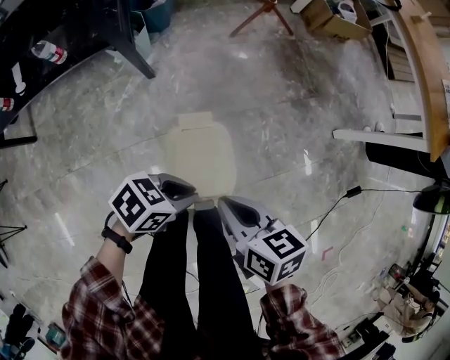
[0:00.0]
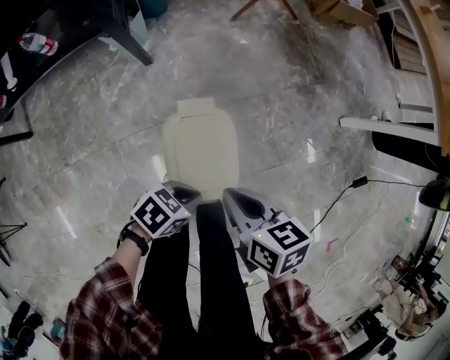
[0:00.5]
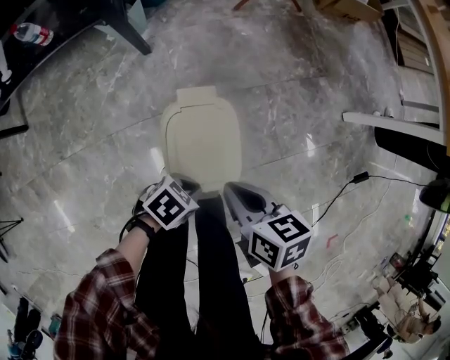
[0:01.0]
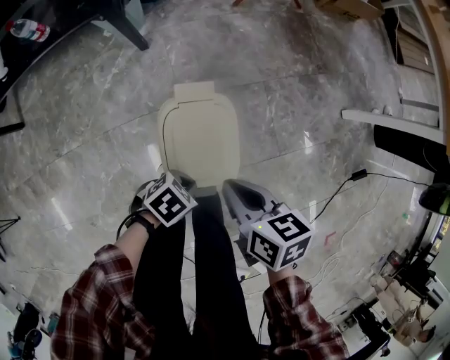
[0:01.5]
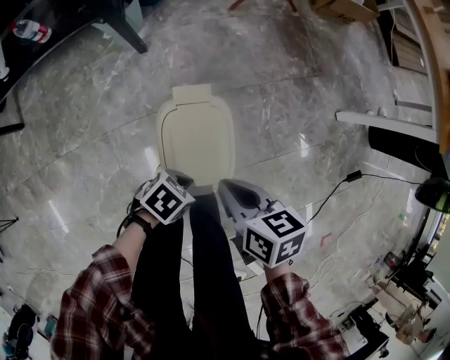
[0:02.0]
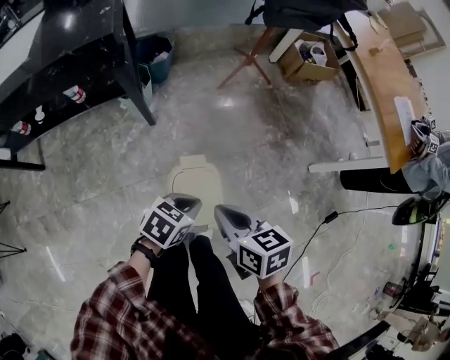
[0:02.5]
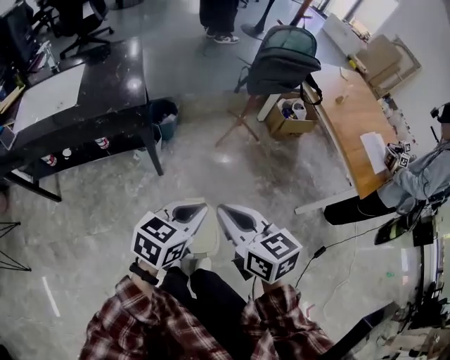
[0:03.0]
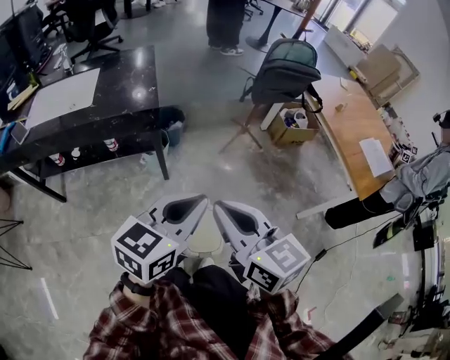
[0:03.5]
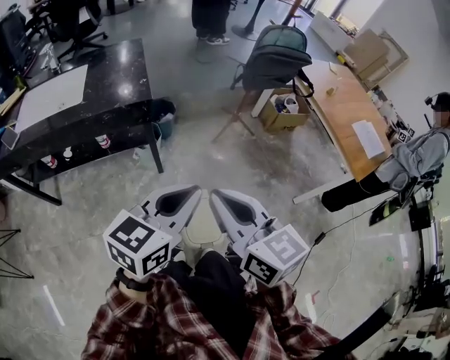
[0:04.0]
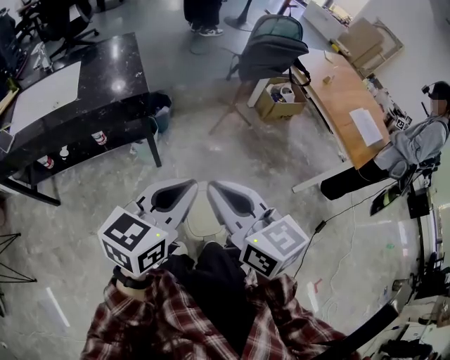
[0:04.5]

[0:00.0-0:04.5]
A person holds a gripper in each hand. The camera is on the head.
0:00.0 to 0:02.0: The right gripper goes about 5 cm downward, while the left gripper travels downward by some 15 cm.
0:02.0 to 0:04.5: The two grippers go some 60 cm upward. The right gripper tips its fingers upward by about 30 degrees. Meanwhile the left gripper tilts its fingers roughly 50 degrees upward.

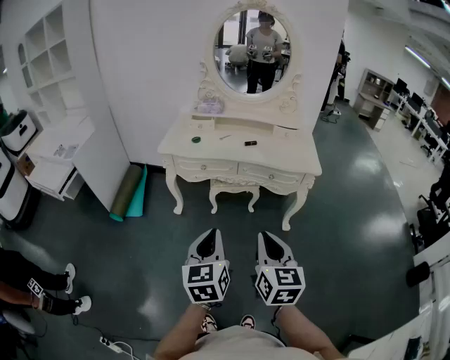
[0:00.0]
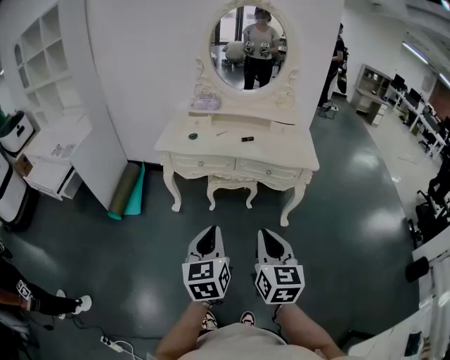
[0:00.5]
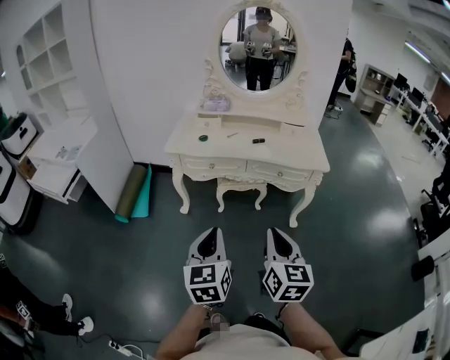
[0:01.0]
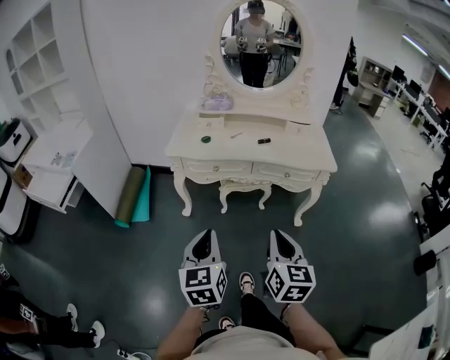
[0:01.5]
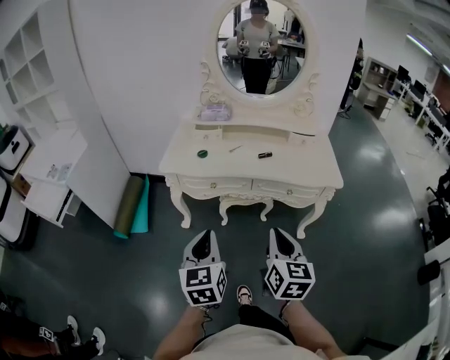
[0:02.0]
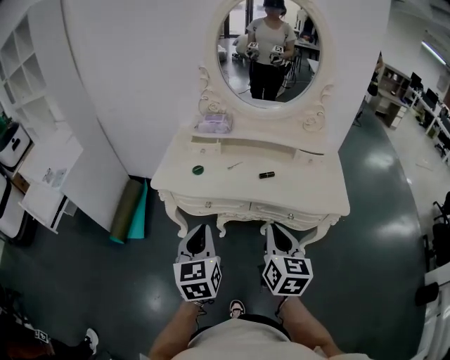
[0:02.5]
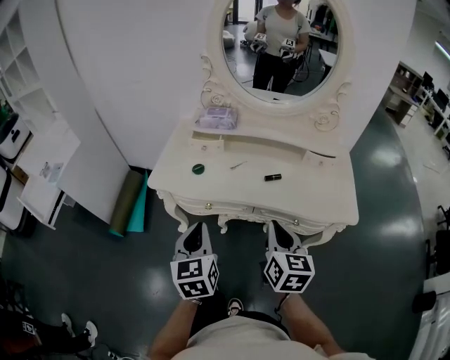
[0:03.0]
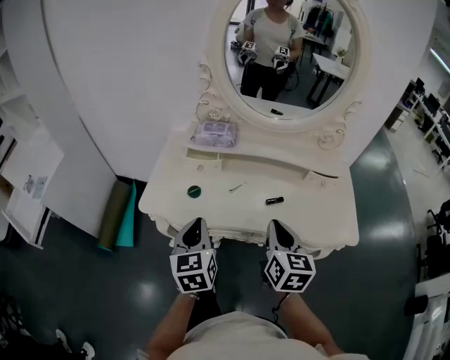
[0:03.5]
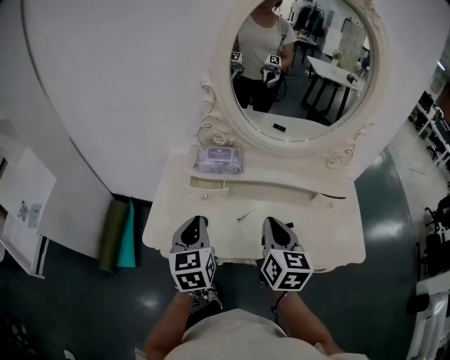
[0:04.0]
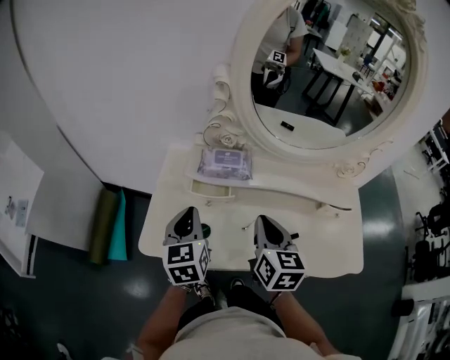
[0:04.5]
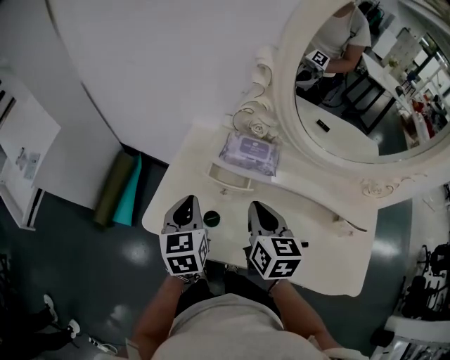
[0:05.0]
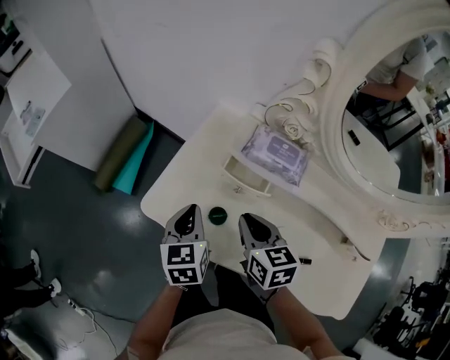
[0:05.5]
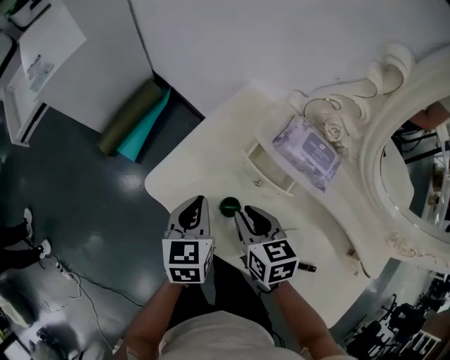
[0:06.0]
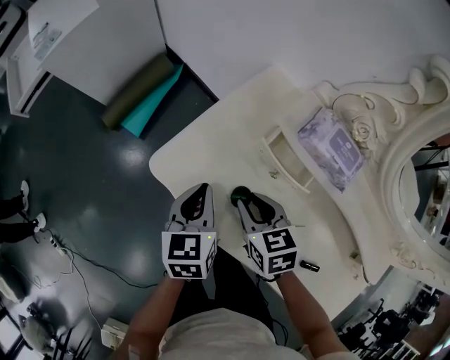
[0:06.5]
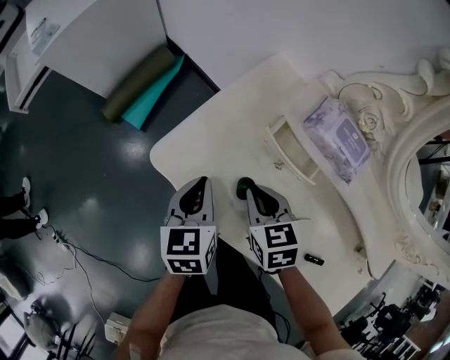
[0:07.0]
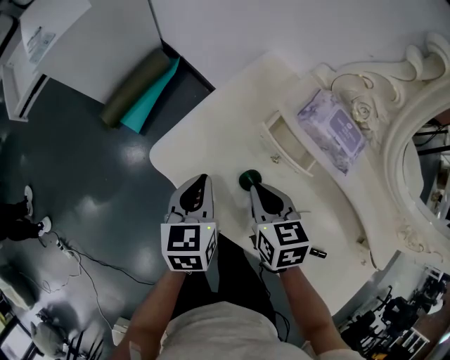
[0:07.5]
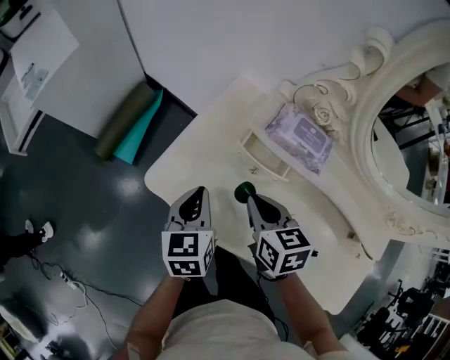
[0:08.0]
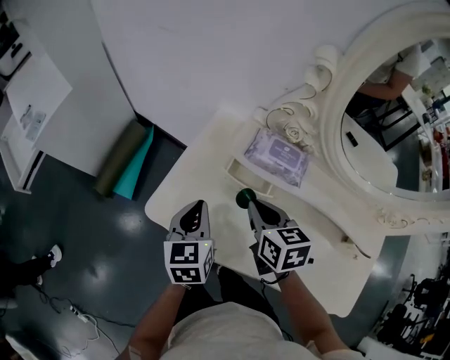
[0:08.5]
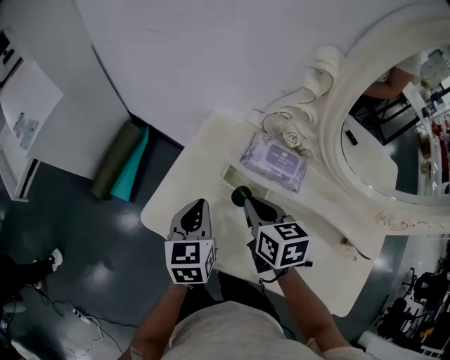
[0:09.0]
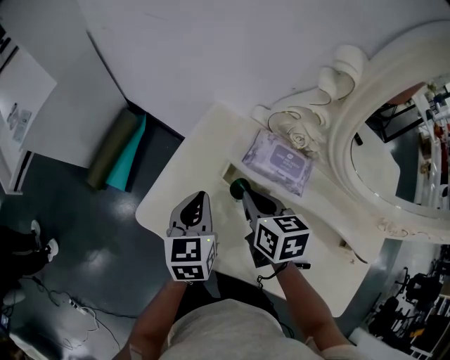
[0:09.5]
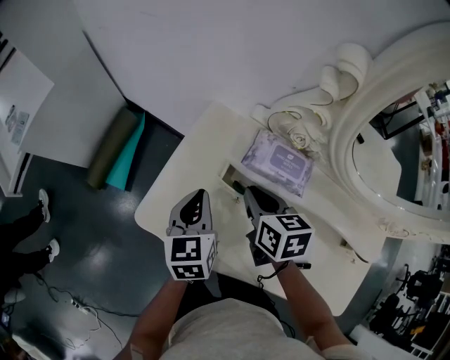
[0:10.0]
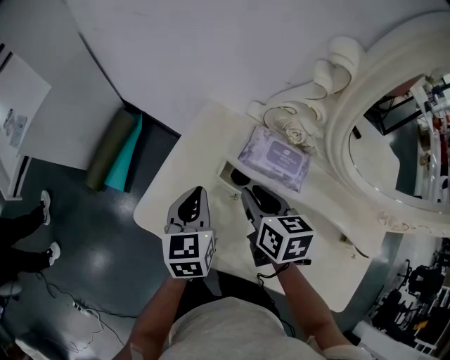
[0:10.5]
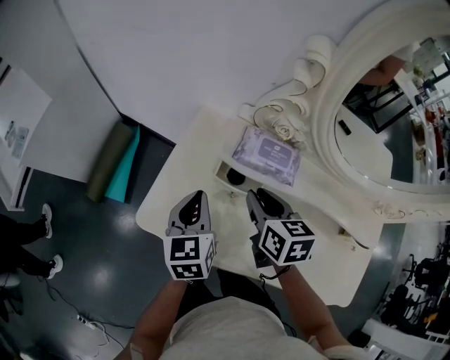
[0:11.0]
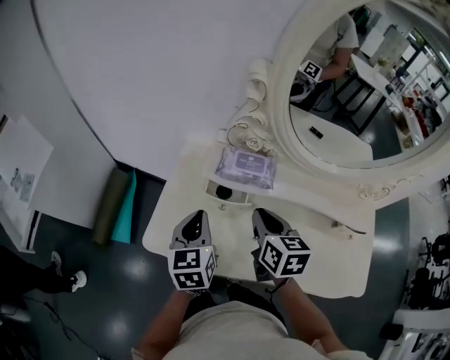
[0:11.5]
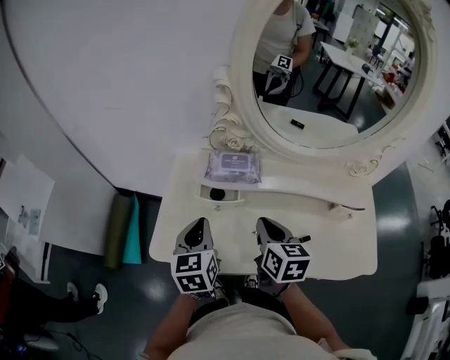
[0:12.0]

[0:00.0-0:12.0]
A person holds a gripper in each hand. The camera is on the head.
0:00.0 to 0:02.0: The left gripper heads forward and to the left, covering approximately 20 cm. Meanwhile the right gripper goes some 15 cm forward.
0:02.0 to 0:04.0: The two grippers travel together, forward, roughly 40 cm.
0:04.0 to 0:06.0: The right gripper moves about 30 cm, and swivels some 60 degrees. The left gripper moves downward, approximately 15 cm, and changes its angle by about 30 degrees.
0:06.0 to 0:08.0: There are only small adjustments of the grippers.
0:08.0 to 0:10.0: The grippers both shift forward by about 10 cm.
0:10.0 to 0:12.0: The right gripper shifts some 15 cm backward, to the right and upward, rotates roughly 30 degrees, and opens, then closes once more, while the left gripper heads upward and backward, covering about 10 cm.

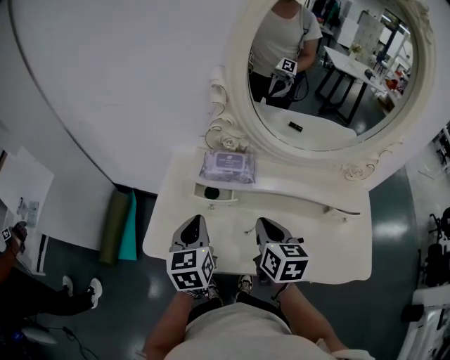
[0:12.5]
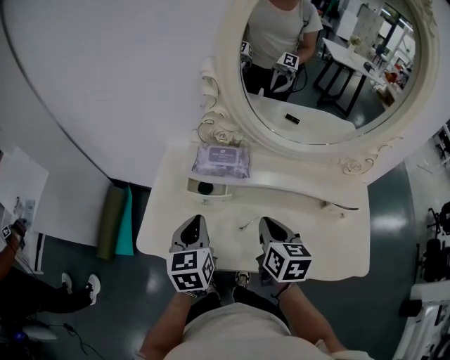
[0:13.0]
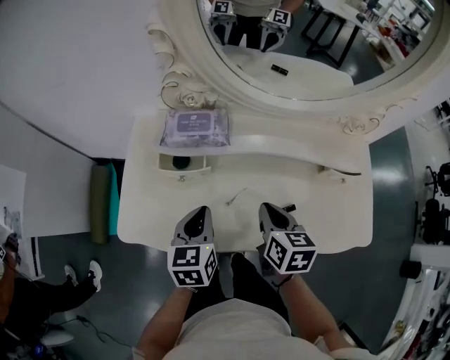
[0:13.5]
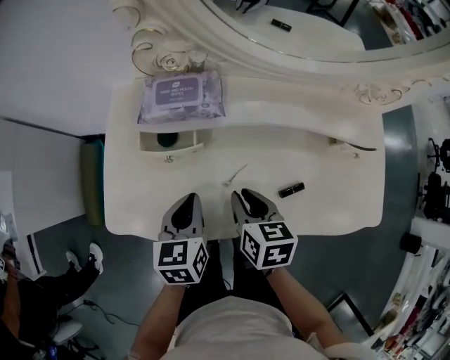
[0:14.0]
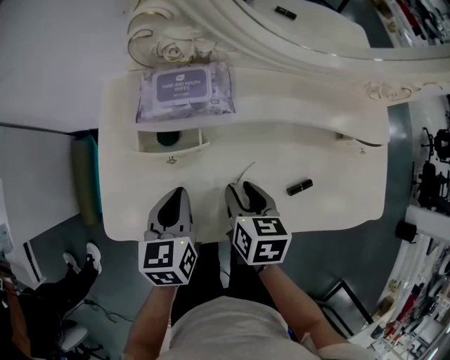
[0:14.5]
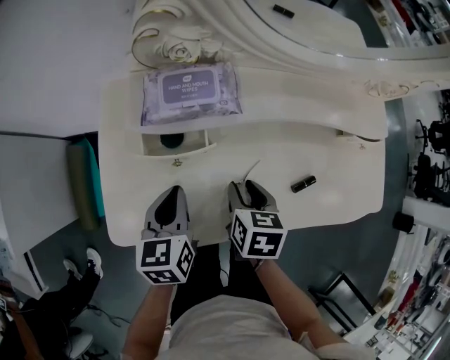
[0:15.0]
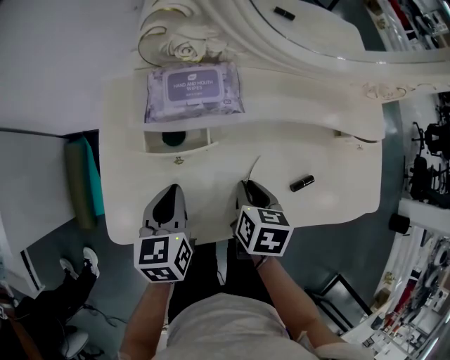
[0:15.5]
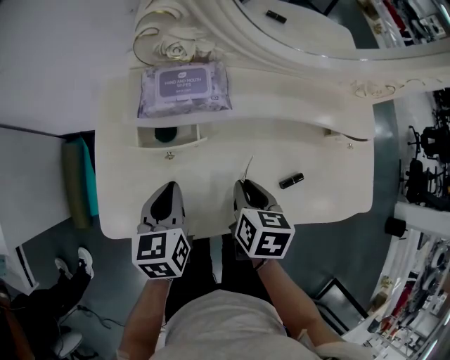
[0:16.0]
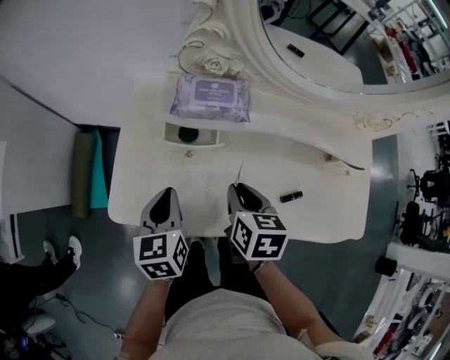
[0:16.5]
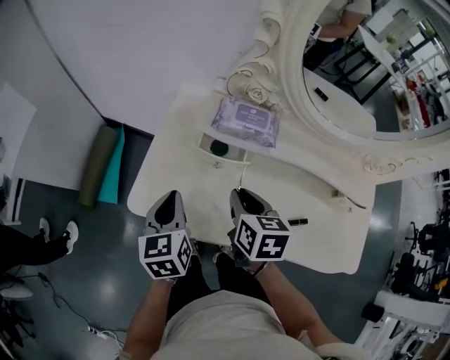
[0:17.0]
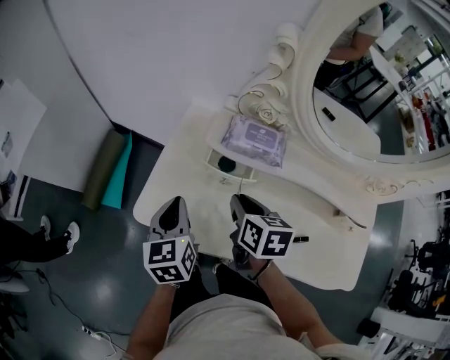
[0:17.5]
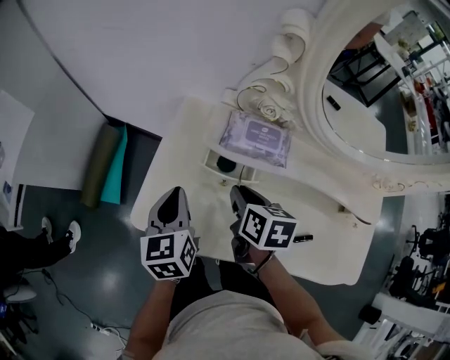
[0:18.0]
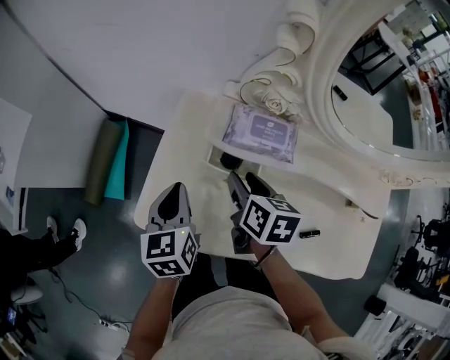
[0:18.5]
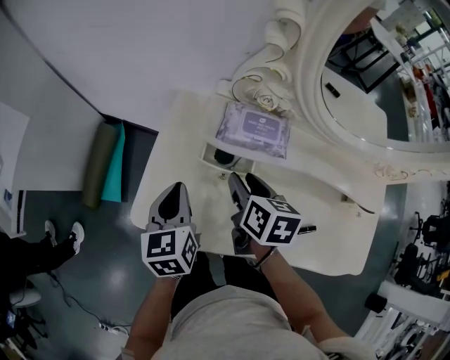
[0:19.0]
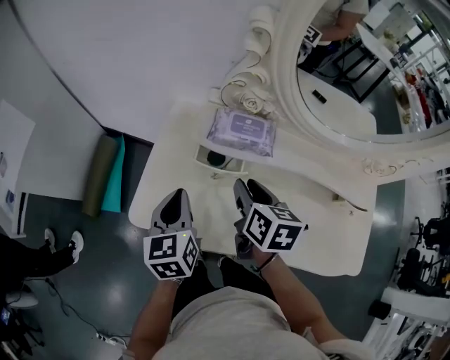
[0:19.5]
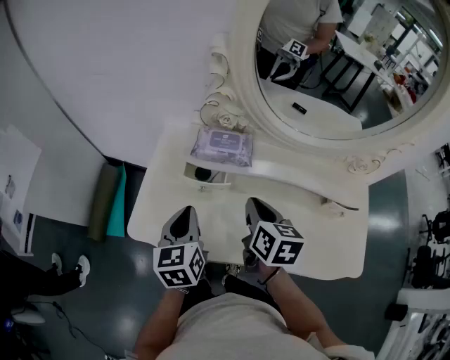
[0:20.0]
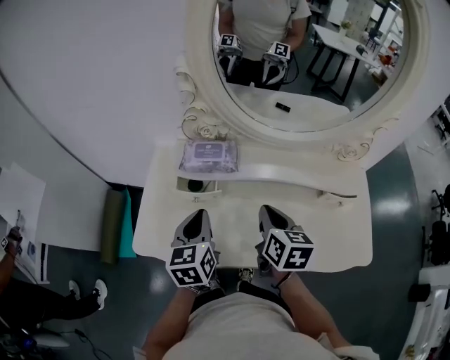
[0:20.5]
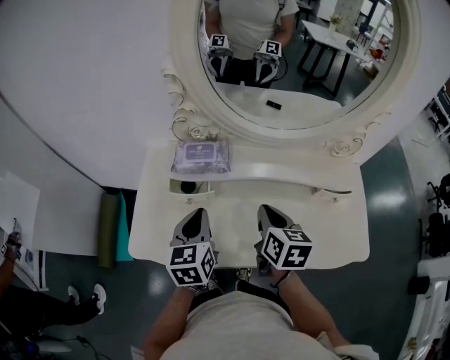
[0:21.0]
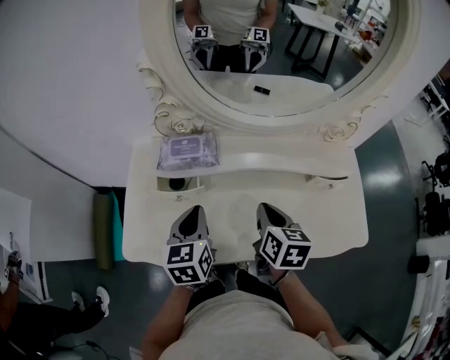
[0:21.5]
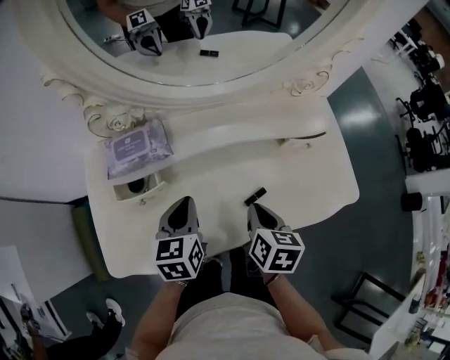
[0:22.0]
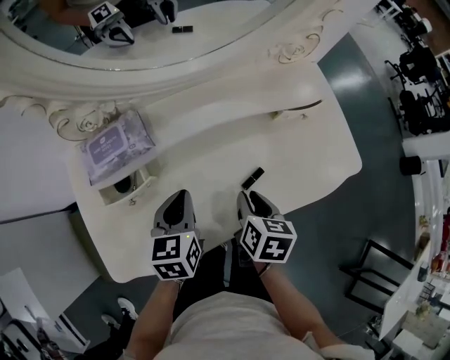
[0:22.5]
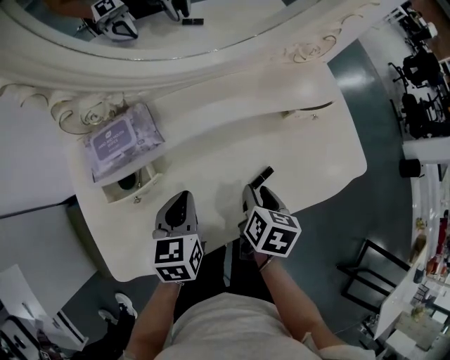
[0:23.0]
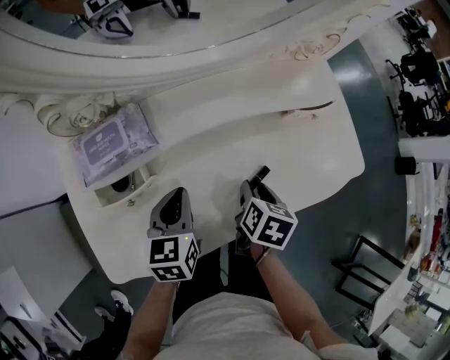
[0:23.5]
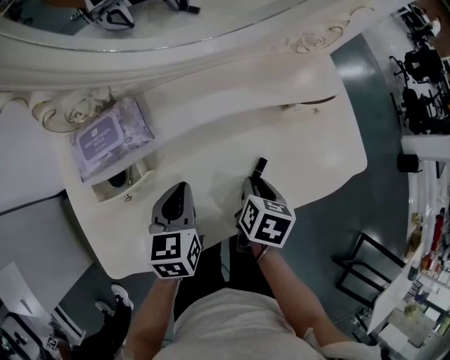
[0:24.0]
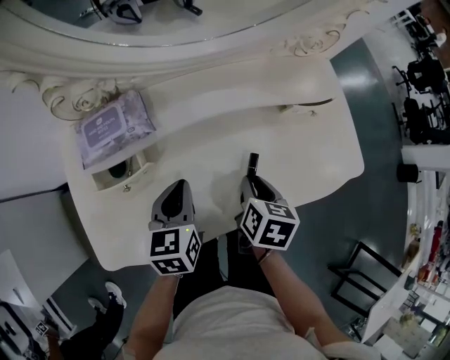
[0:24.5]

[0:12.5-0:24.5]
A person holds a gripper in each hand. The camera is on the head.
0:12.5 to 0:14.5: The grippers both shift downward by approximately 15 cm. The left gripper swivels some 20 degrees. Meanwhile the right gripper swivels roughly 20 degrees, and opens its fingers.
0:14.5 to 0:16.5: The left gripper moves to the left, about 5 cm; the right gripper is displaced upward by roughly 5 cm.
0:16.5 to 0:18.5: The two grippers go approximately 10 cm forward and to the left. The right gripper opens.
0:18.5 to 0:20.5: The right gripper goes approximately 20 cm to the right, backward and upward, and closes; the left gripper travels to the right by approximately 15 cm.
0:20.5 to 0:22.5: The left gripper moves roughly 15 cm, and rotates about 30 degrees. The right gripper heads downward, covering approximately 15 cm, rotates approximately 40 degrees, and opens up.
0:22.5 to 0:24.5: The grippers move only a little.
